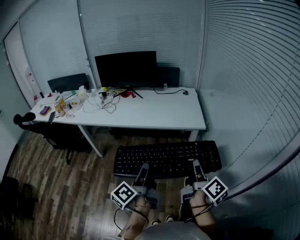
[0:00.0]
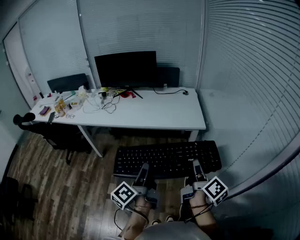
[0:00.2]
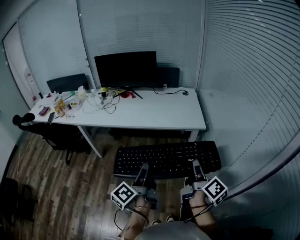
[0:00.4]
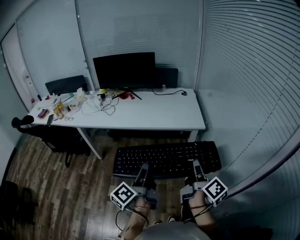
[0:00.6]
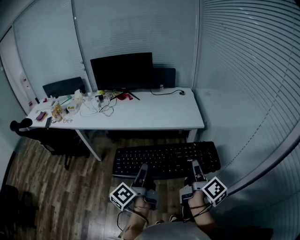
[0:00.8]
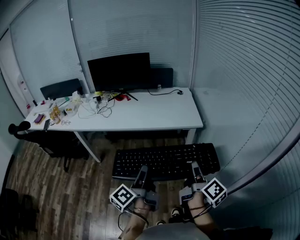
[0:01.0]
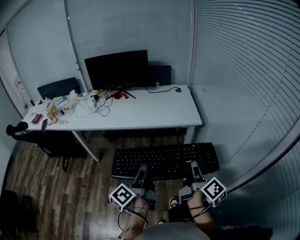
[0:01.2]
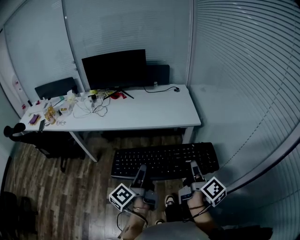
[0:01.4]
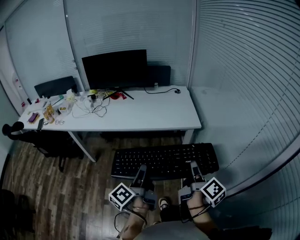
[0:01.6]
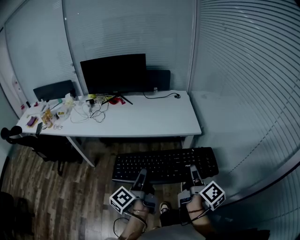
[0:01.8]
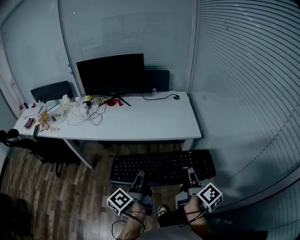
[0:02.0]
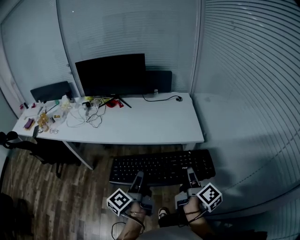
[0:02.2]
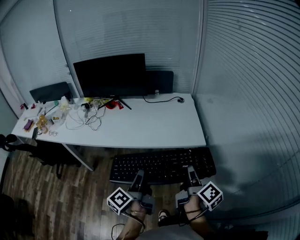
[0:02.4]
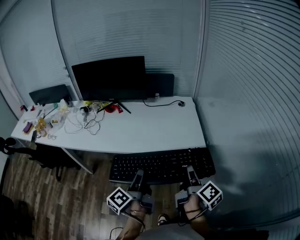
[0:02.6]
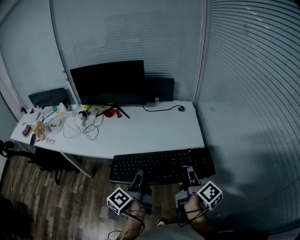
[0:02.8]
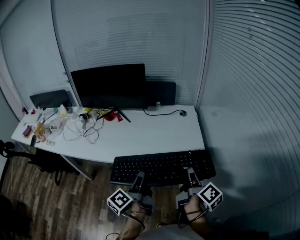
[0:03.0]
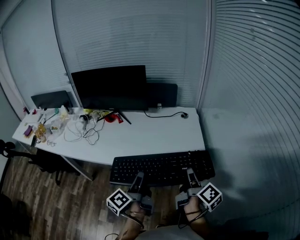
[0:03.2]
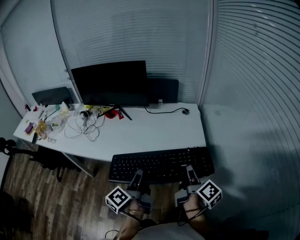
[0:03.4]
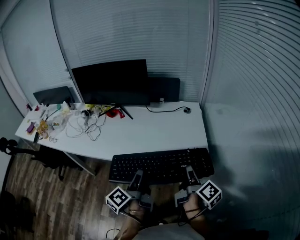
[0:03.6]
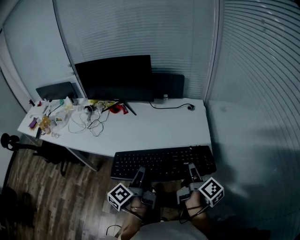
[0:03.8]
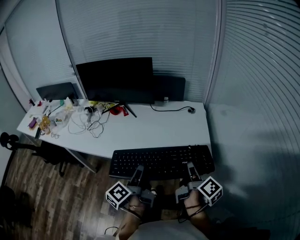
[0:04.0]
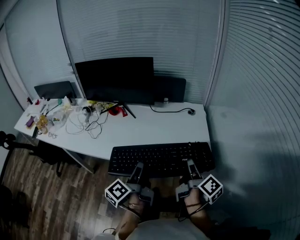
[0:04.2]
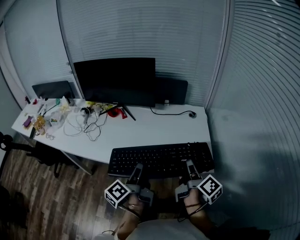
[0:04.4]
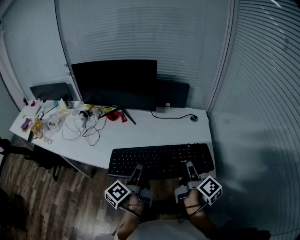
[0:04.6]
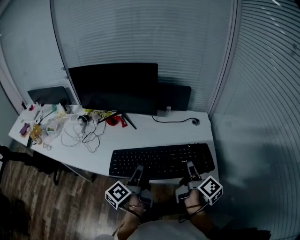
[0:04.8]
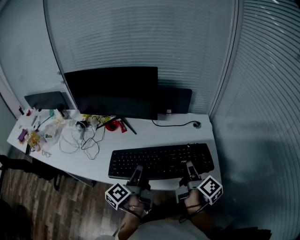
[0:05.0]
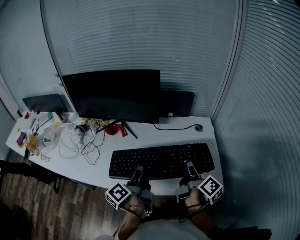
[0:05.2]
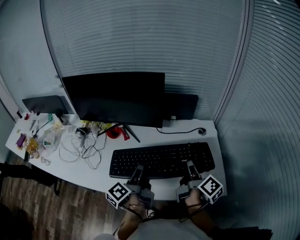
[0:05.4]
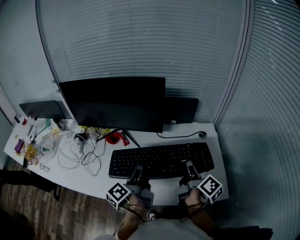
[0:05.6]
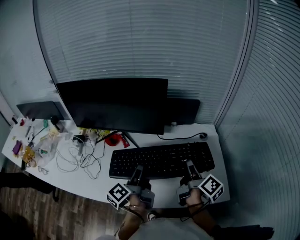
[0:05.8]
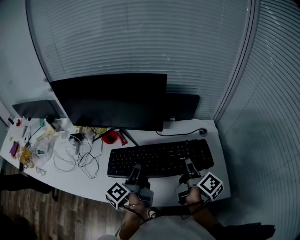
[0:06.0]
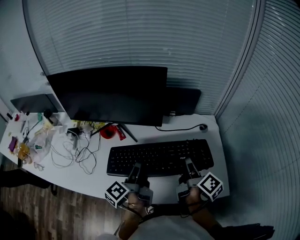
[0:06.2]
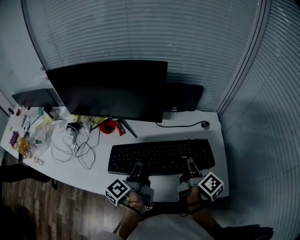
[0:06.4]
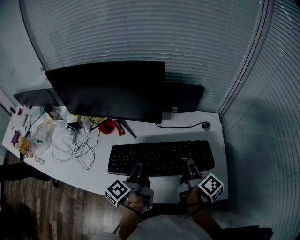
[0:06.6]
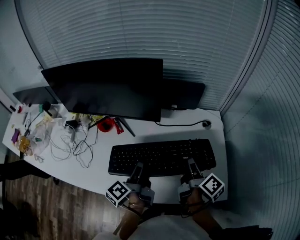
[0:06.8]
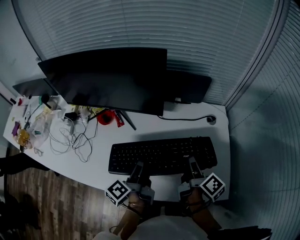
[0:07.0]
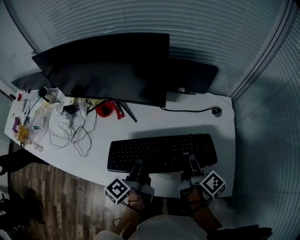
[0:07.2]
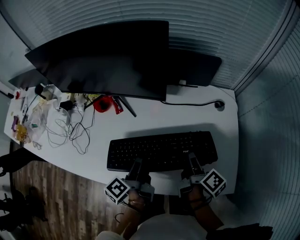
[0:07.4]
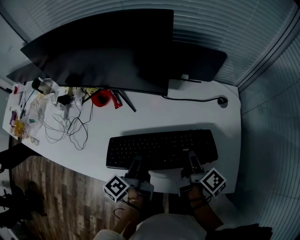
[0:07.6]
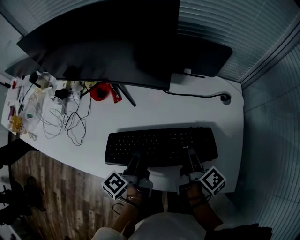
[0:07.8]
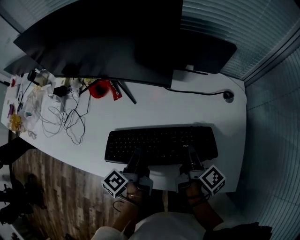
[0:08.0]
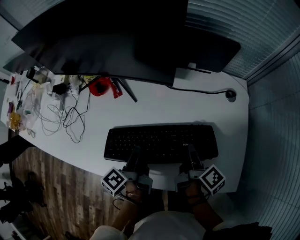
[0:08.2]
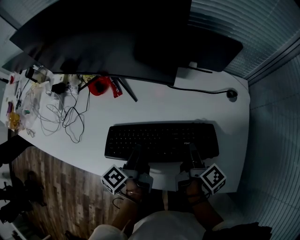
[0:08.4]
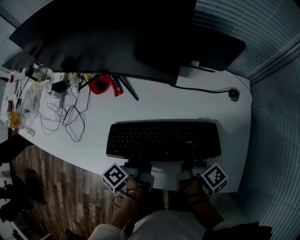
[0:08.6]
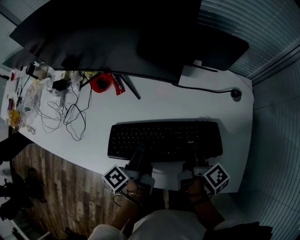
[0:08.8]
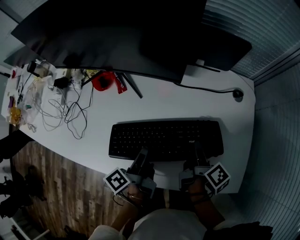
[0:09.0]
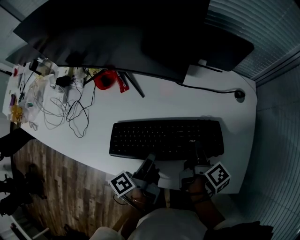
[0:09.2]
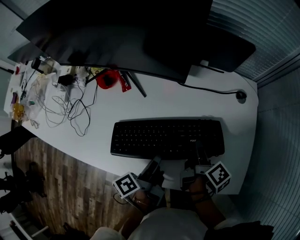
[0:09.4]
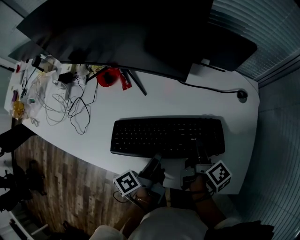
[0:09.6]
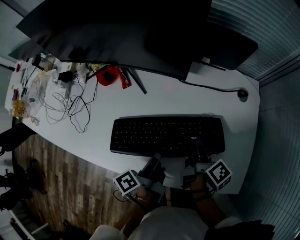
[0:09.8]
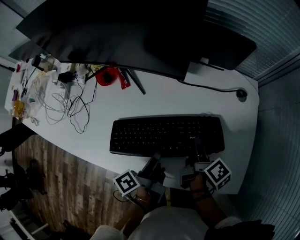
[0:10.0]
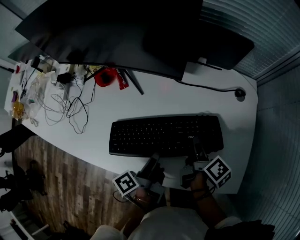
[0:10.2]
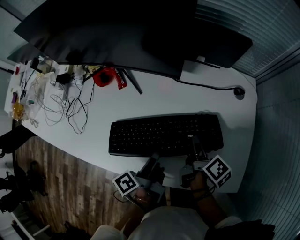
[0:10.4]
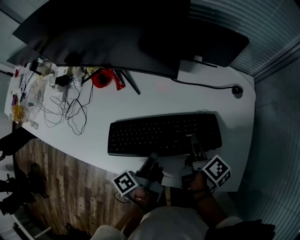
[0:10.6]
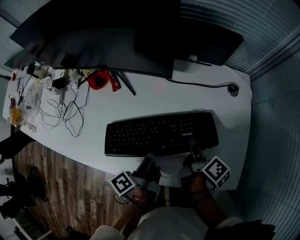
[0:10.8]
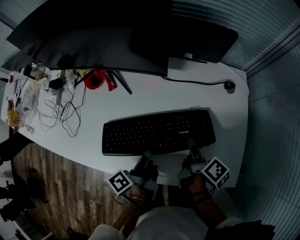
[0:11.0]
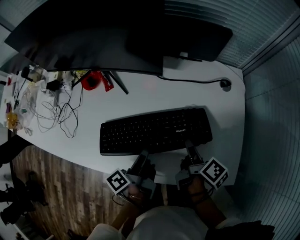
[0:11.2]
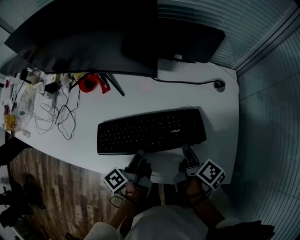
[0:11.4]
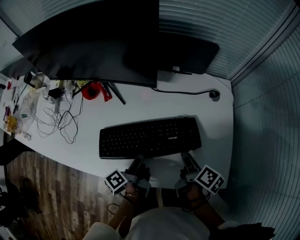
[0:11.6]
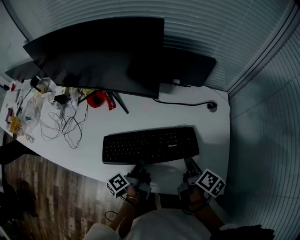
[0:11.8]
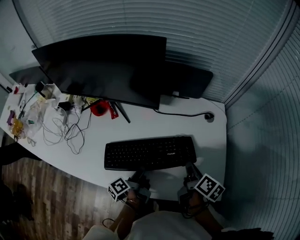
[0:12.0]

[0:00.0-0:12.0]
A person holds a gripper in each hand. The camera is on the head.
0:01.6 to 0:03.0: The right gripper shifts by roughly 30 cm.
0:03.0 to 0:04.4: The right gripper ends up roughly 10 cm from where it was.
0:04.4 to 0:06.0: The right gripper shifts by roughly 25 cm.
0:06.0 to 0:07.6: The right gripper heads downward, covering about 15 cm.
0:10.4 to 0:12.0: The right gripper shifts by approximately 10 cm.

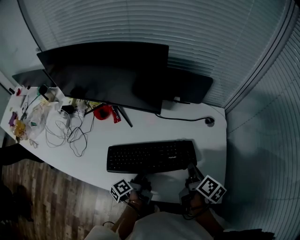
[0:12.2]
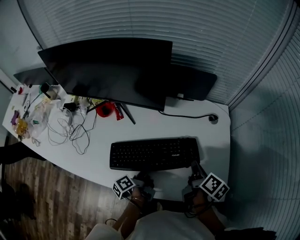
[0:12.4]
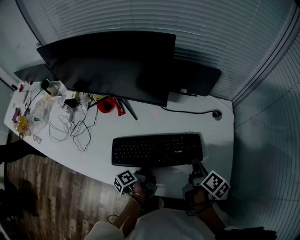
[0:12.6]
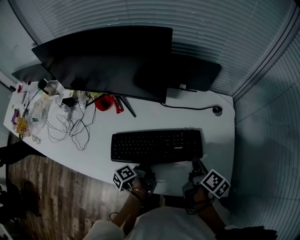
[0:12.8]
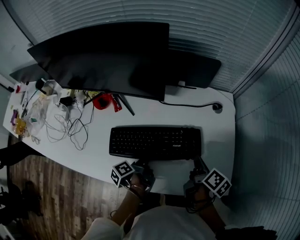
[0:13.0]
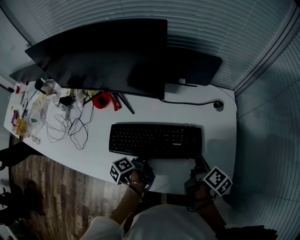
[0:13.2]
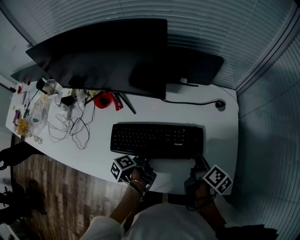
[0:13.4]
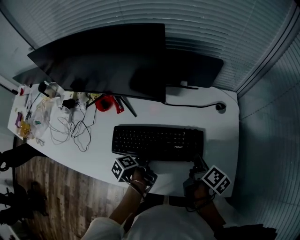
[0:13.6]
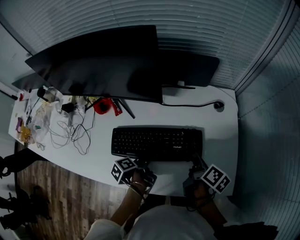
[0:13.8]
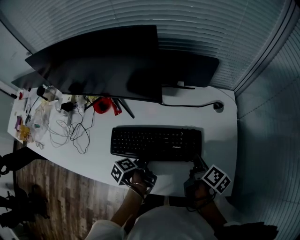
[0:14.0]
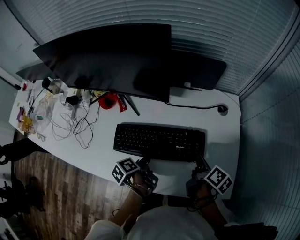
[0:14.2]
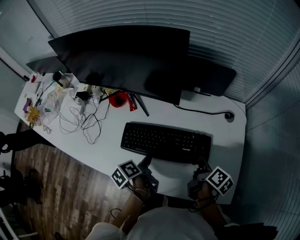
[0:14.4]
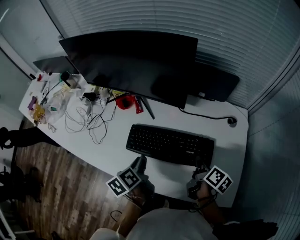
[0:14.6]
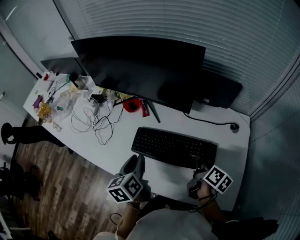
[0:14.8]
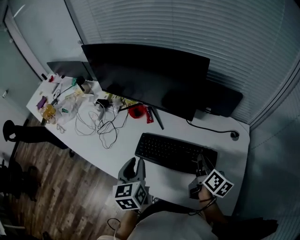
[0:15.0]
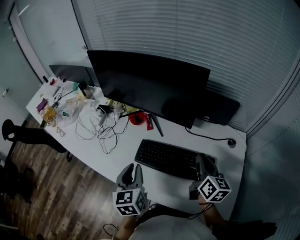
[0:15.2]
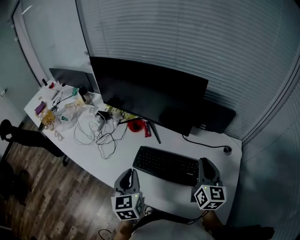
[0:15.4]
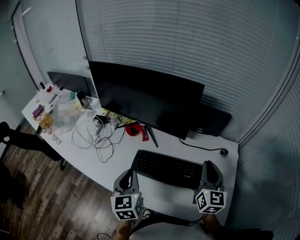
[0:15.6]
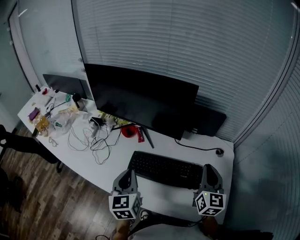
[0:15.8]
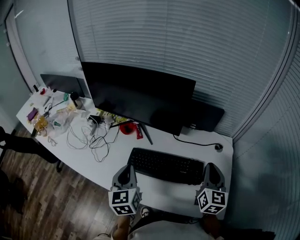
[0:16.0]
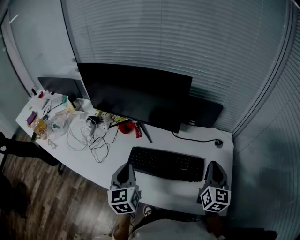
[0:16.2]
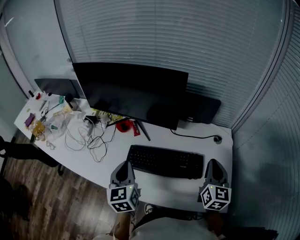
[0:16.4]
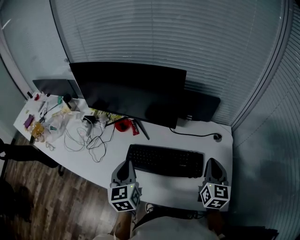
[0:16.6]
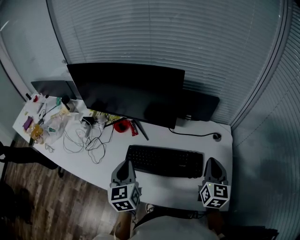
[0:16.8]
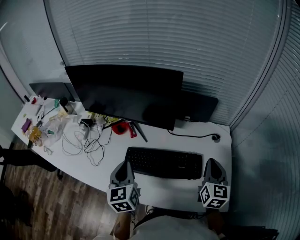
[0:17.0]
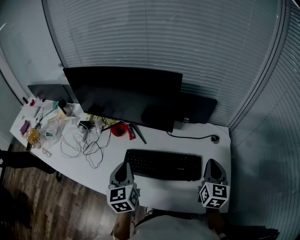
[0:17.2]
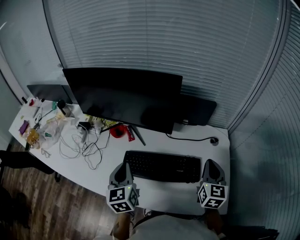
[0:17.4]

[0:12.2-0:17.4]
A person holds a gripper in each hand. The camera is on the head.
0:12.2 to 0:14.0: The right gripper ends up roughly 5 cm from where it was.
0:14.0 to 0:15.6: The right gripper goes approximately 20 cm upward, and rotates around the line of its fingers by some 60 degrees, counterclockwise from behind.
0:15.6 to 0:17.4: The right gripper moves some 10 cm.

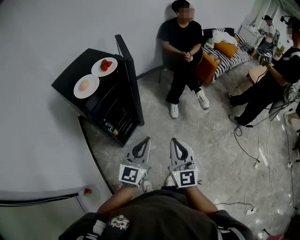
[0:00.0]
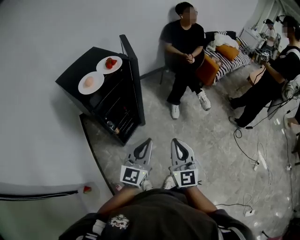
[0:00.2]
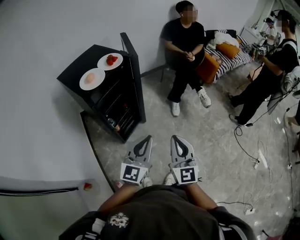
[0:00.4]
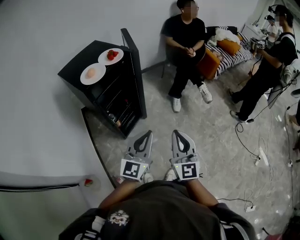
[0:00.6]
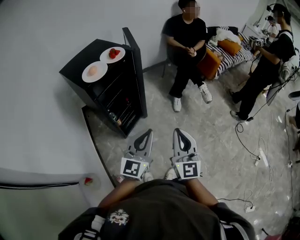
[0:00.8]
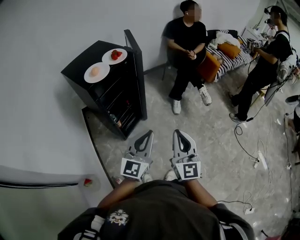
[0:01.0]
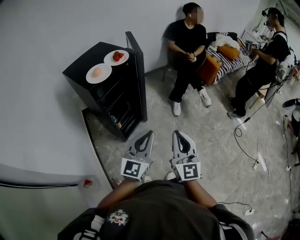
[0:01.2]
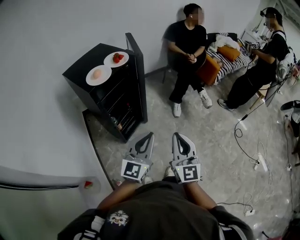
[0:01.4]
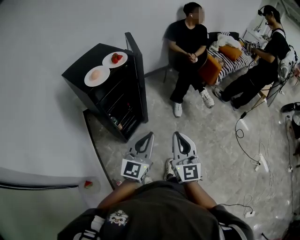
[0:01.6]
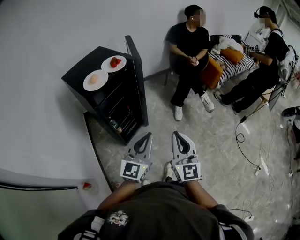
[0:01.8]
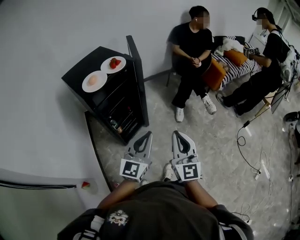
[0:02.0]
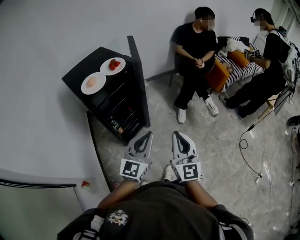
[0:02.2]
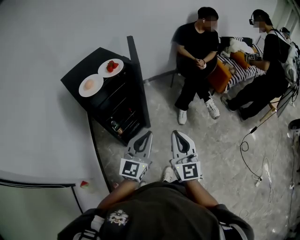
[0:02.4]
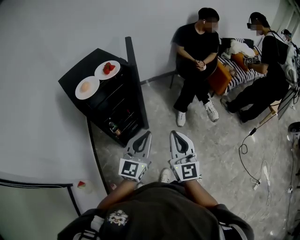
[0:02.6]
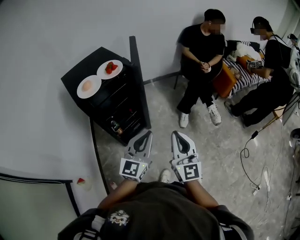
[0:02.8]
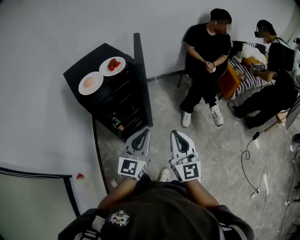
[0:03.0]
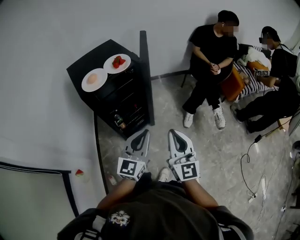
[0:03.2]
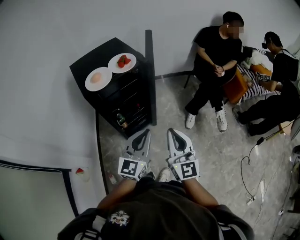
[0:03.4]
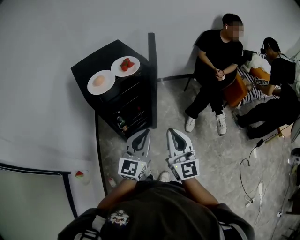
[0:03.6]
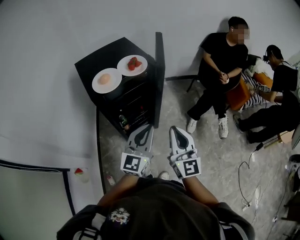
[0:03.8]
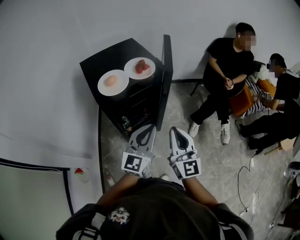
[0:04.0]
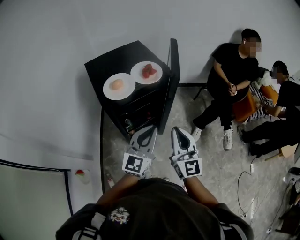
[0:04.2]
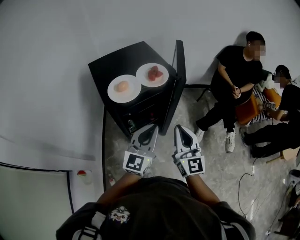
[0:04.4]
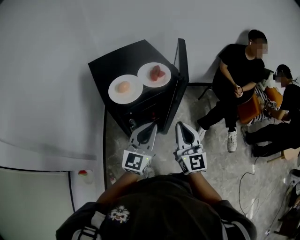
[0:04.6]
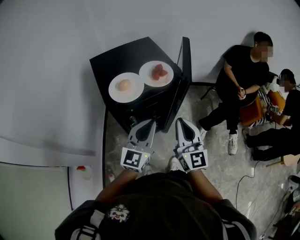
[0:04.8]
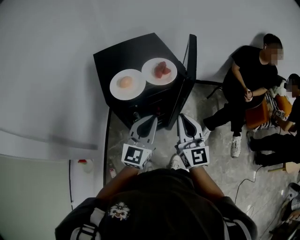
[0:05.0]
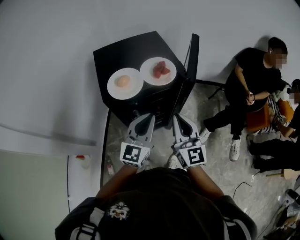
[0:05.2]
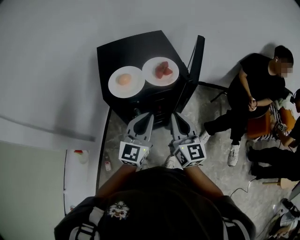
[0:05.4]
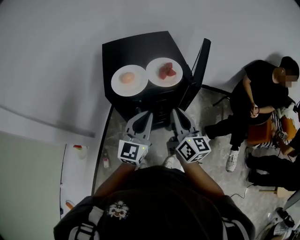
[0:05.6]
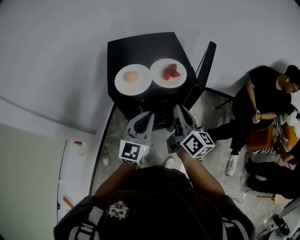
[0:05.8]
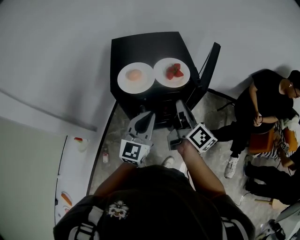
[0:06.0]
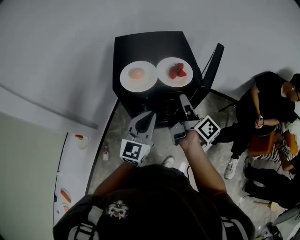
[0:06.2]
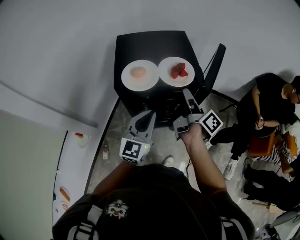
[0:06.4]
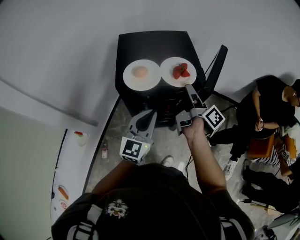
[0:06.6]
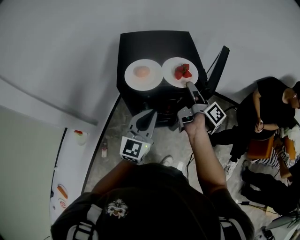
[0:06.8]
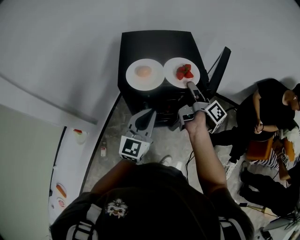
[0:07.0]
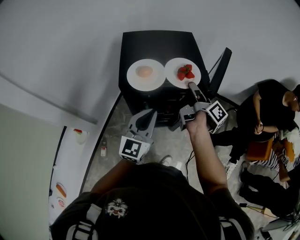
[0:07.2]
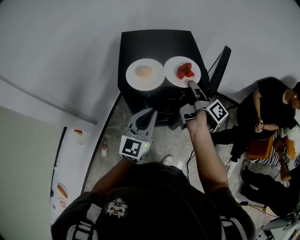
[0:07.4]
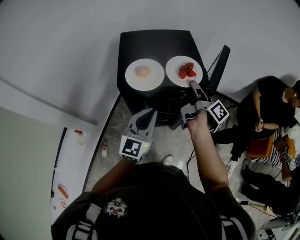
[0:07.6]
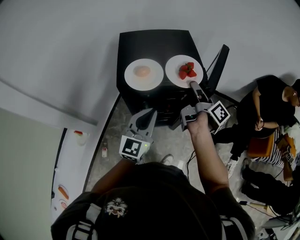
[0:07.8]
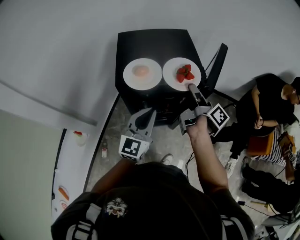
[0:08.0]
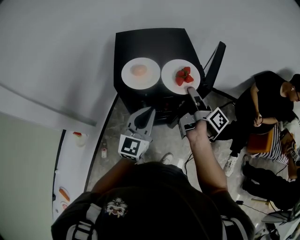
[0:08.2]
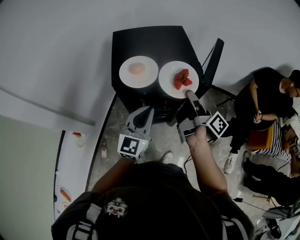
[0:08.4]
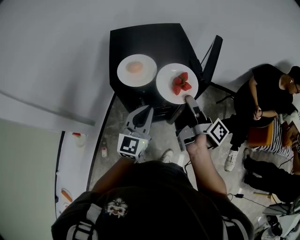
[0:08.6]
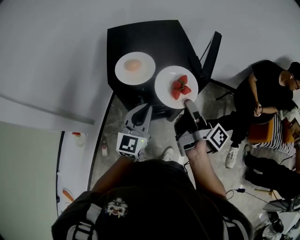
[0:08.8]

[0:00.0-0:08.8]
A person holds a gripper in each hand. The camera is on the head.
0:00.0 to 0:01.4: Both grippers move backward, roughly 5 cm.
0:01.4 to 0:03.0: Both grippers move forward and to the right, some 15 cm.
0:03.0 to 0:04.4: Both grippers move forward and to the left, some 20 cm.
0:04.4 to 0:05.8: The left gripper heads forward, covering approximately 5 cm, and turns by some 20 degrees. The right gripper travels forward by approximately 15 cm, and twists roughly 40 degrees clockwise, seen from behind.
0:05.8 to 0:07.4: The right gripper heads forward, covering roughly 10 cm, and twists about 50 degrees clockwise, seen from behind.
0:07.4 to 0:08.8: The right gripper is displaced backward by approximately 10 cm.
